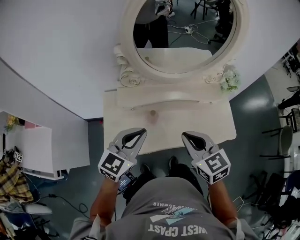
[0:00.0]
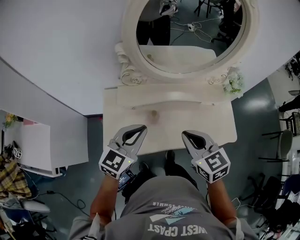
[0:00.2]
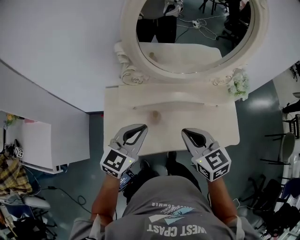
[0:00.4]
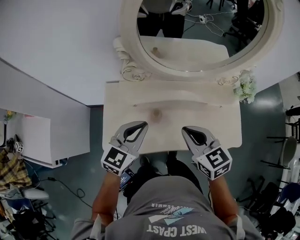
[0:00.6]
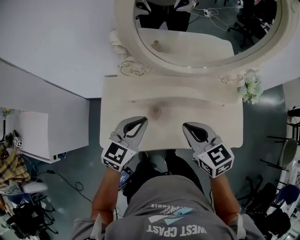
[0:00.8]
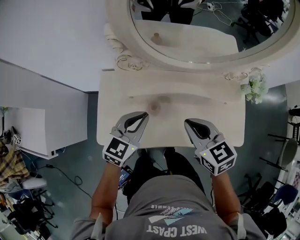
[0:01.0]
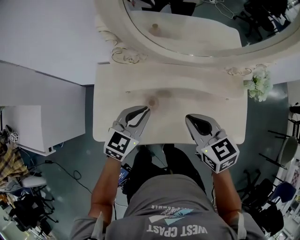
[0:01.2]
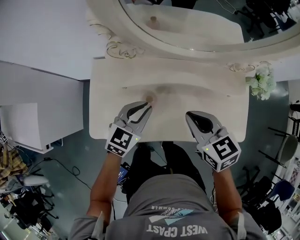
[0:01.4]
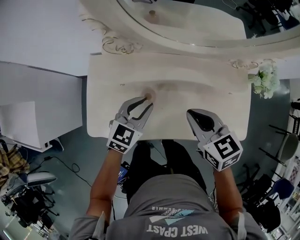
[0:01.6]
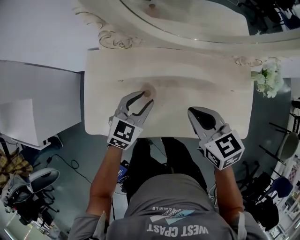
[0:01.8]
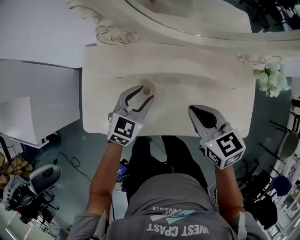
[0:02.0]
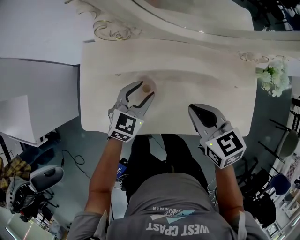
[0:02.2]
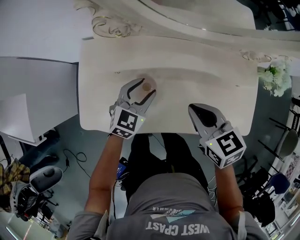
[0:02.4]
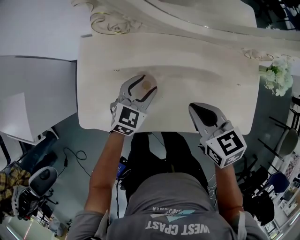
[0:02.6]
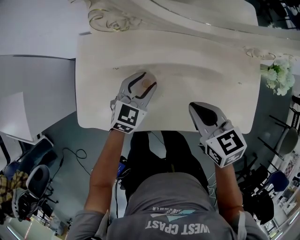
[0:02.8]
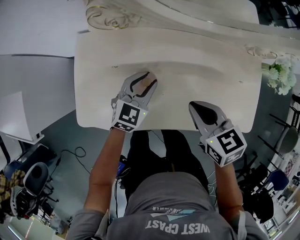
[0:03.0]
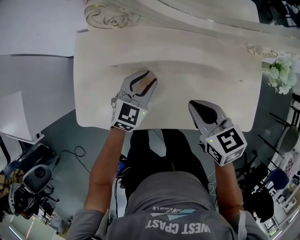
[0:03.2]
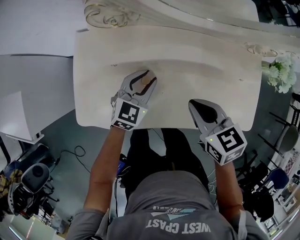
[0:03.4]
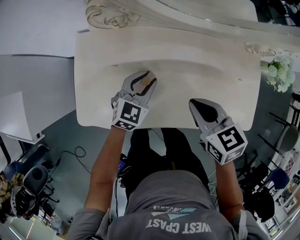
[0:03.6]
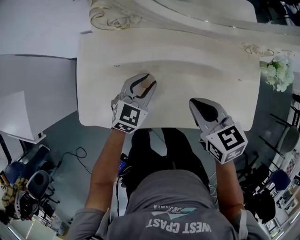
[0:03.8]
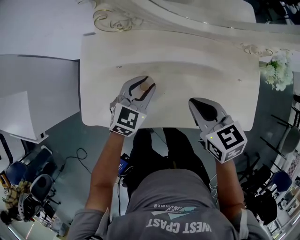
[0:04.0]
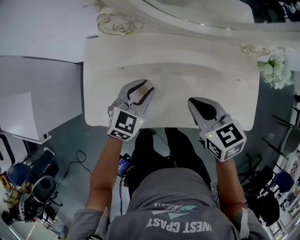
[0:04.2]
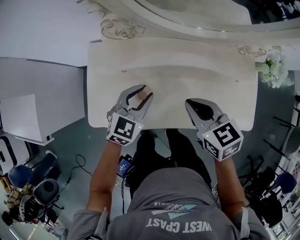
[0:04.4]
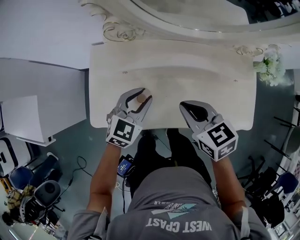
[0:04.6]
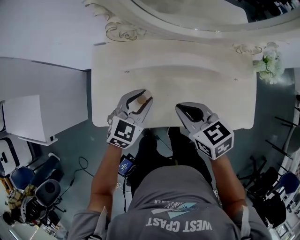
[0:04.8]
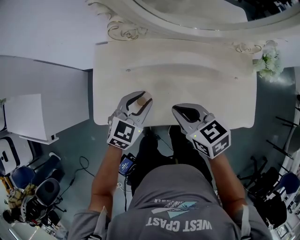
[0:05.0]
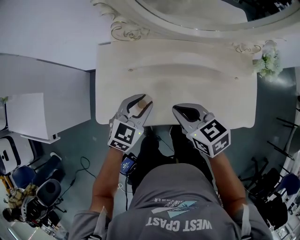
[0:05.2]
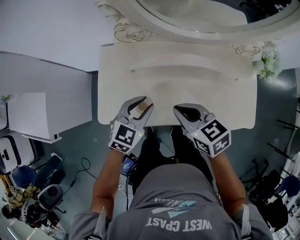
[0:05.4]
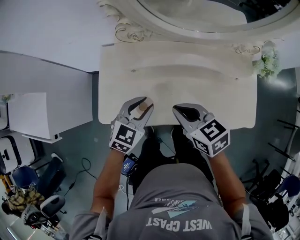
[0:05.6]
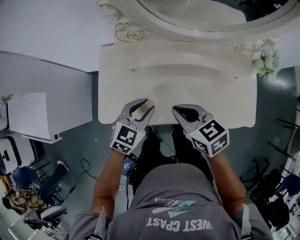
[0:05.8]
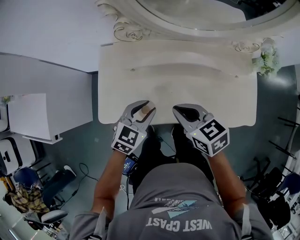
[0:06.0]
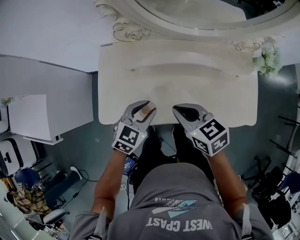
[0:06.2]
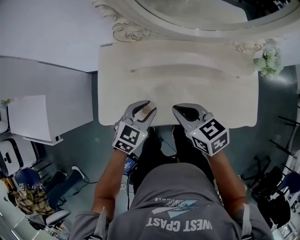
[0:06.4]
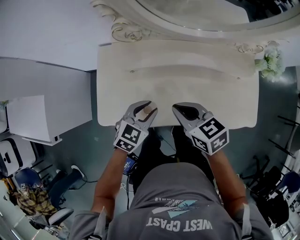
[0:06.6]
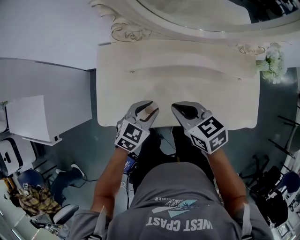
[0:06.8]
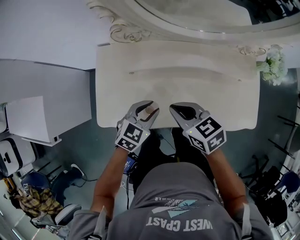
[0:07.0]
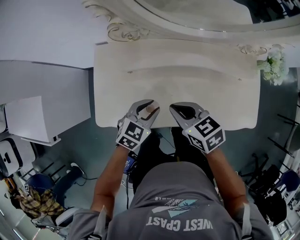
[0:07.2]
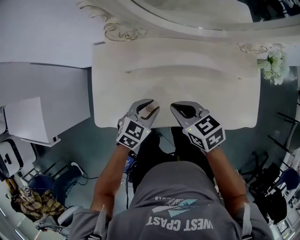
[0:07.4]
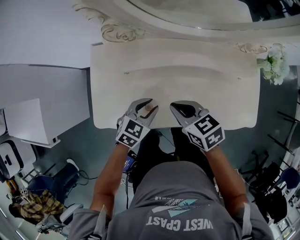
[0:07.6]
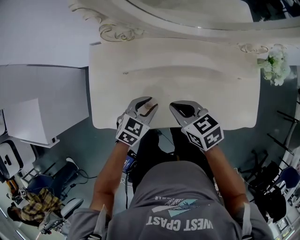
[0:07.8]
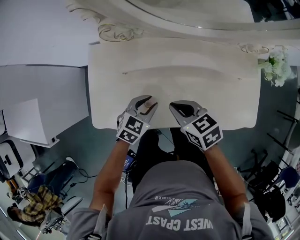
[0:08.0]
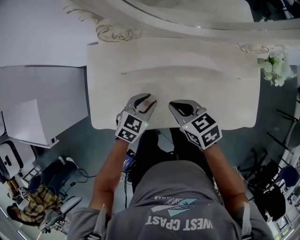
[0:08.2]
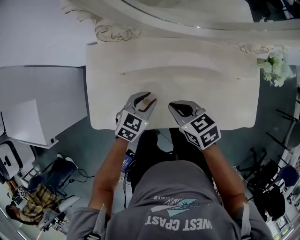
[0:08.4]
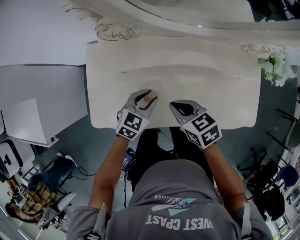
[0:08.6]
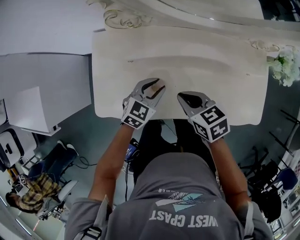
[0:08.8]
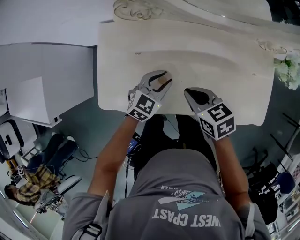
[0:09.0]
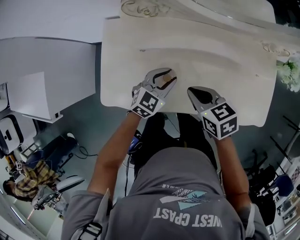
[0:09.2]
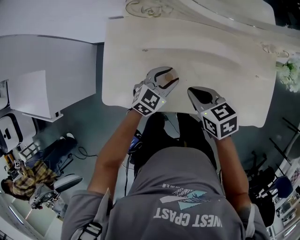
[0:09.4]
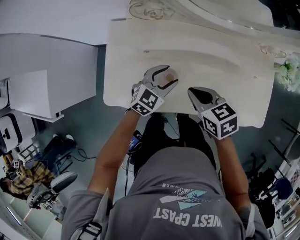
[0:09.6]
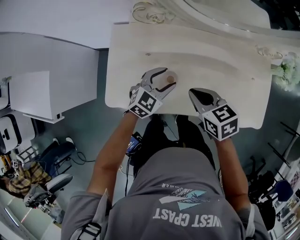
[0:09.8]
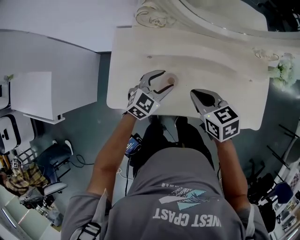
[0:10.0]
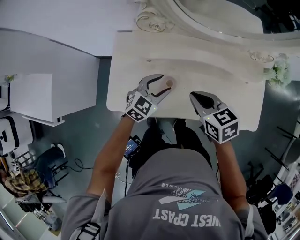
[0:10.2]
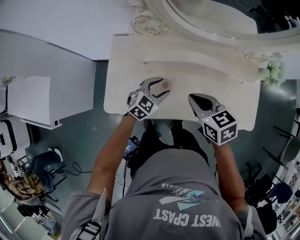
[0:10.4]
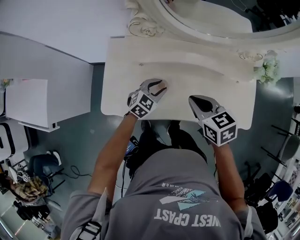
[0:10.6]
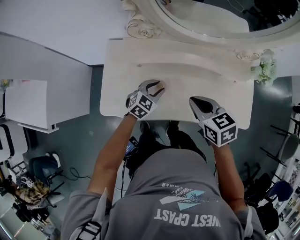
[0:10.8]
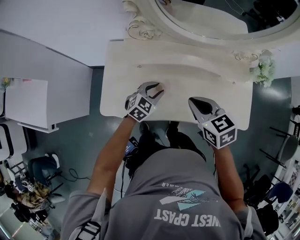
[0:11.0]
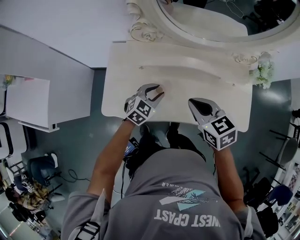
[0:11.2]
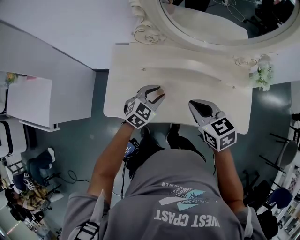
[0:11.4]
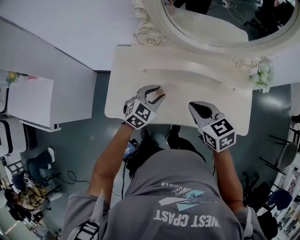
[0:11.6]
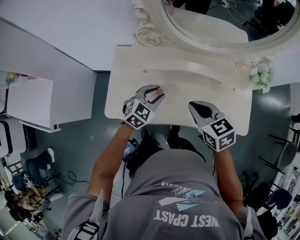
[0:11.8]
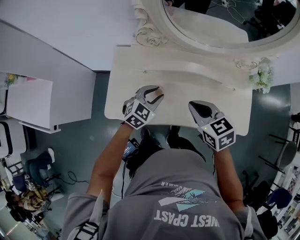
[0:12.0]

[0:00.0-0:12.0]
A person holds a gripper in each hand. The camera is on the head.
0:00.0 to 0:01.6: The left gripper shifts about 25 cm downward and forward, and opens. The right gripper is displaced forward and downward by approximately 20 cm.
0:01.6 to 0:03.0: Both grippers move downward, roughly 10 cm. The left gripper opens, then closes once more.
0:03.0 to 0:04.4: The left gripper goes about 10 cm upward. Meanwhile the right gripper ends up roughly 5 cm from where it was.
0:04.4 to 0:06.0: The left gripper goes some 10 cm backward; the right gripper shifts about 10 cm to the left and backward.
0:06.0 to 0:07.6: The two grippers go approximately 5 cm downward.
0:07.6 to 0:09.0: The grippers make only small movements.
0:09.0 to 0:10.4: The right gripper moves upward, approximately 10 cm, while the left gripper opens its fingers.
0:10.4 to 0:12.0: The left gripper heads upward, covering about 5 cm, and closes its fingers.

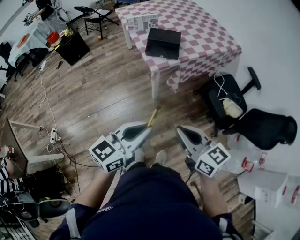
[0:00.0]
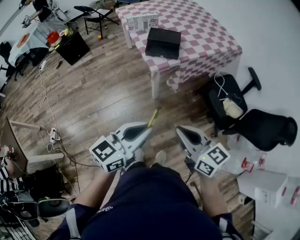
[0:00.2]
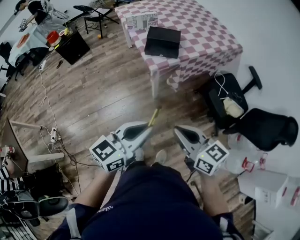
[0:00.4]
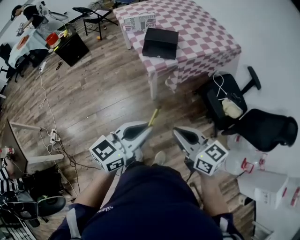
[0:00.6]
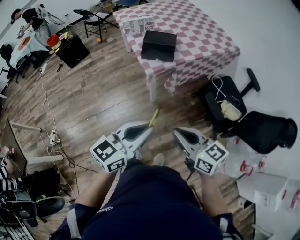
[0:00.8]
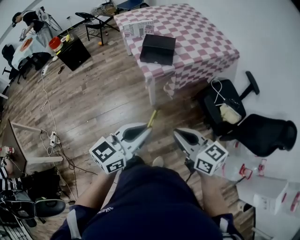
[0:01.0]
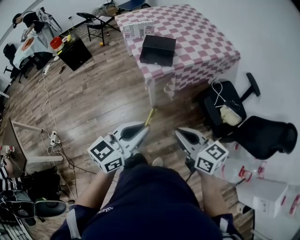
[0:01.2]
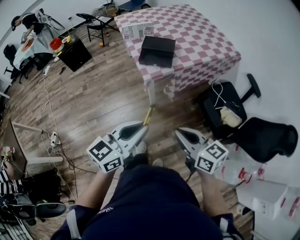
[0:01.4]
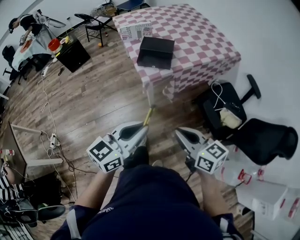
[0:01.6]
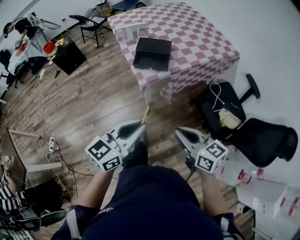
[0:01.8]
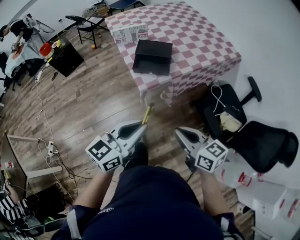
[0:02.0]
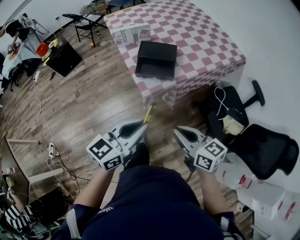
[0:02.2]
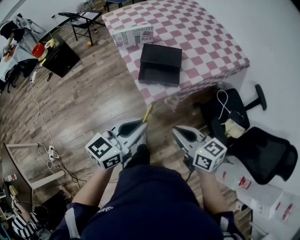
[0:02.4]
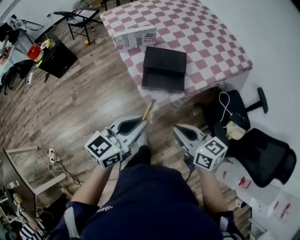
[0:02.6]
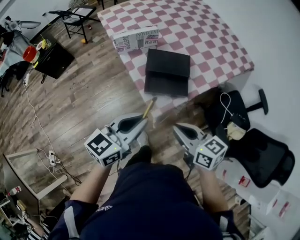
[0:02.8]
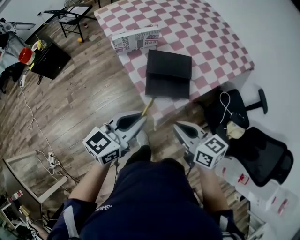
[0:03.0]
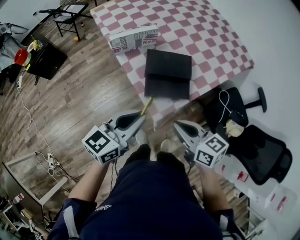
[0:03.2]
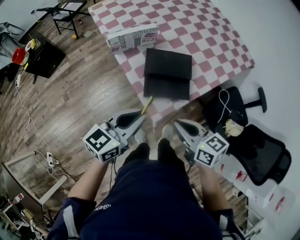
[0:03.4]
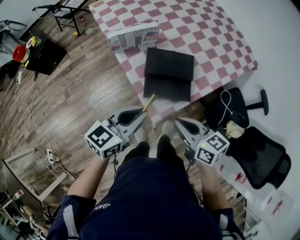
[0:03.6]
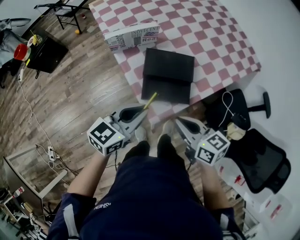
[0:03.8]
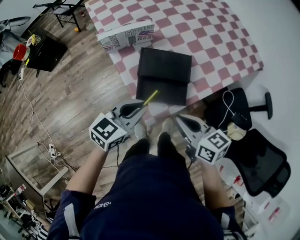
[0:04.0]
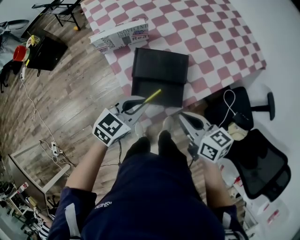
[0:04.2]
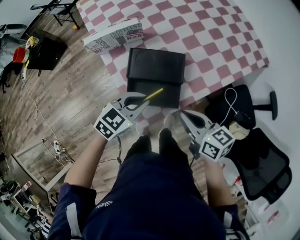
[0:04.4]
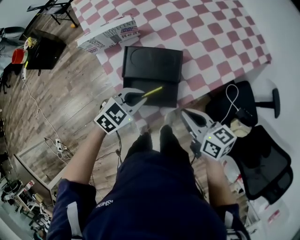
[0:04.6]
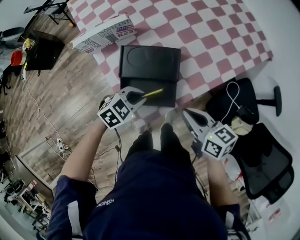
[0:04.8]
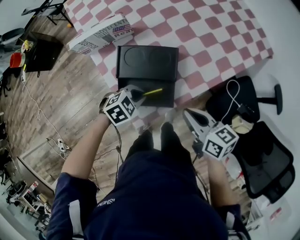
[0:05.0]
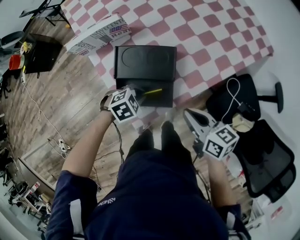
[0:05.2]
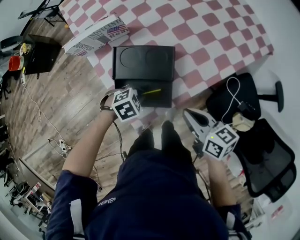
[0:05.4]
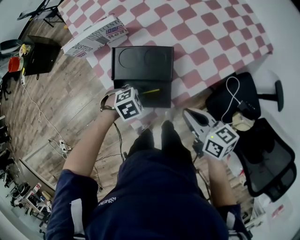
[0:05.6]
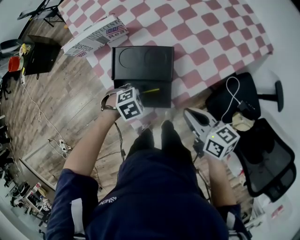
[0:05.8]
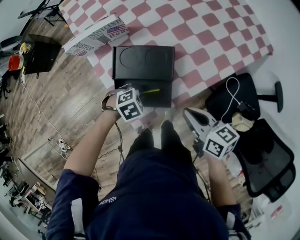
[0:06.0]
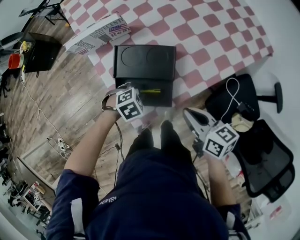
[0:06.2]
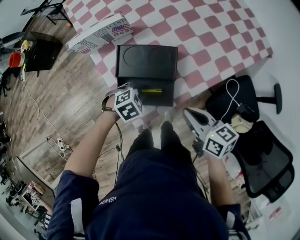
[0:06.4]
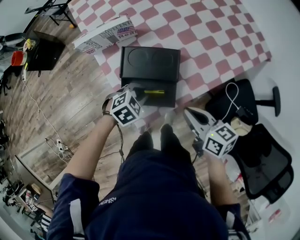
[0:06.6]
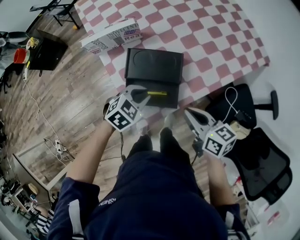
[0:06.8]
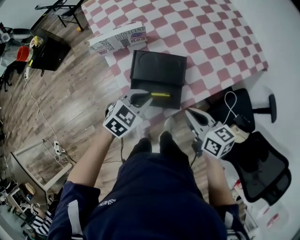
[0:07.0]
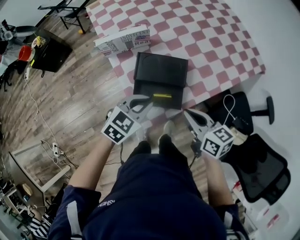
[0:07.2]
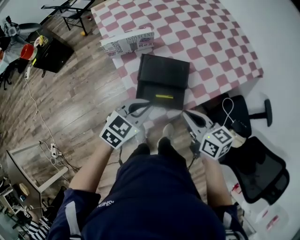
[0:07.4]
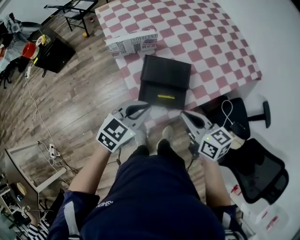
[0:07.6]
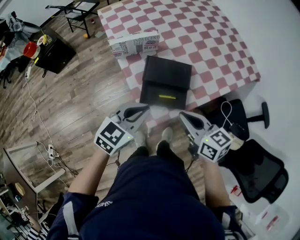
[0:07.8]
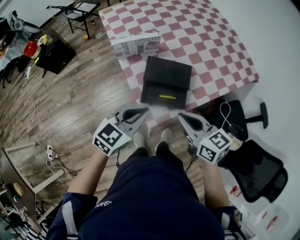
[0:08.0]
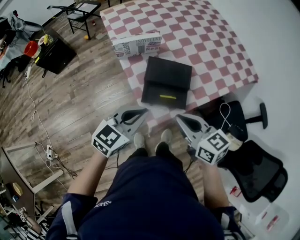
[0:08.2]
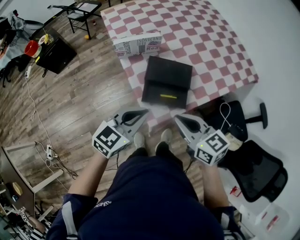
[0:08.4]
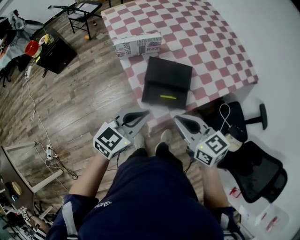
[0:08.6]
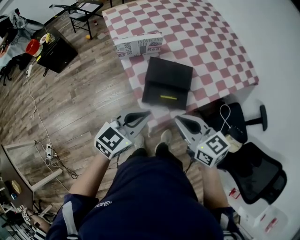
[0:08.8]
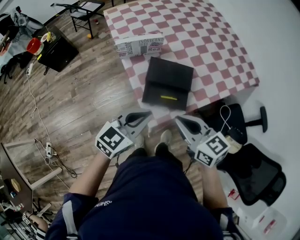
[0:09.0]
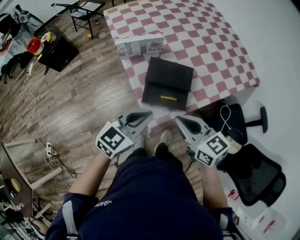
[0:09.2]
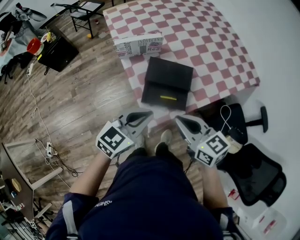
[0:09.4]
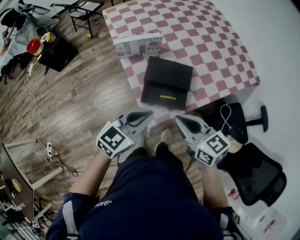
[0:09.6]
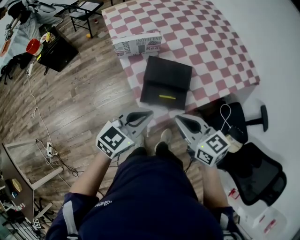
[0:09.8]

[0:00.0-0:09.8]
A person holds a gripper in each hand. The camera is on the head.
0:00.0 to 0:01.4: The two grippers go about 5 cm to the right.
0:01.4 to 0:02.8: The two grippers go some 35 cm forward.
0:02.8 to 0:04.2: The right gripper heads forward and to the right, covering roughly 15 cm; the left gripper is displaced forward, downward and to the right by about 20 cm, and swivels some 20 degrees.
0:04.2 to 0:05.6: The left gripper travels downward by roughly 20 cm, and angles its fingers downward, by approximately 40 degrees, while the right gripper moves some 10 cm.
0:05.6 to 0:07.0: The right gripper changes place by about 5 cm; the left gripper goes approximately 15 cm upward, and turns by about 40 degrees.
0:07.0 to 0:08.4: The left gripper shifts some 15 cm upward, backward and to the left, and turns by about 30 degrees, while the right gripper is displaced to the left, upward and backward by roughly 15 cm.
0:08.4 to 0:09.8: The grippers stay close to where they were, moving slightly.

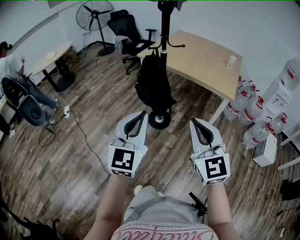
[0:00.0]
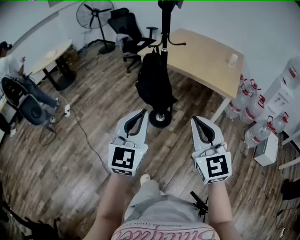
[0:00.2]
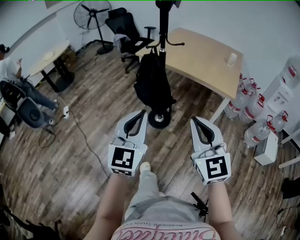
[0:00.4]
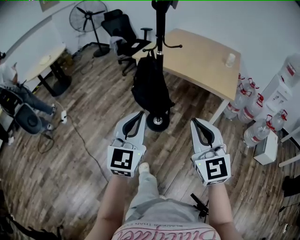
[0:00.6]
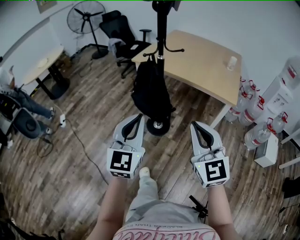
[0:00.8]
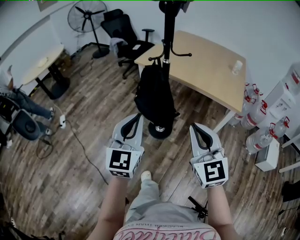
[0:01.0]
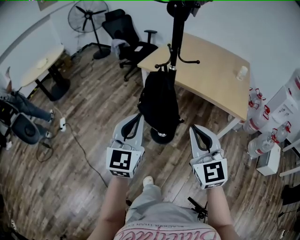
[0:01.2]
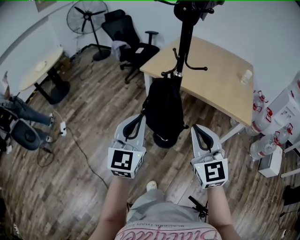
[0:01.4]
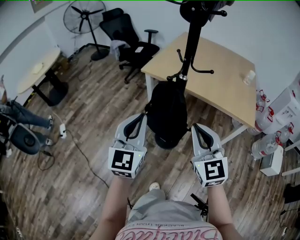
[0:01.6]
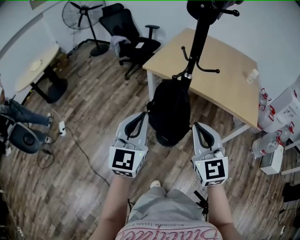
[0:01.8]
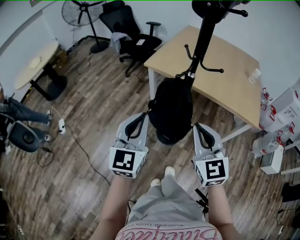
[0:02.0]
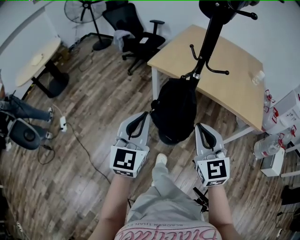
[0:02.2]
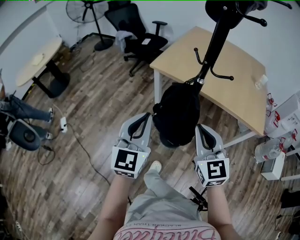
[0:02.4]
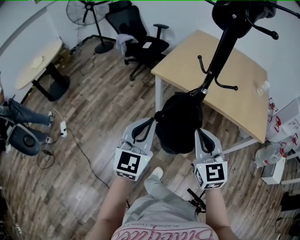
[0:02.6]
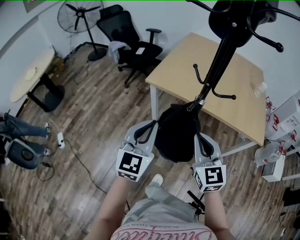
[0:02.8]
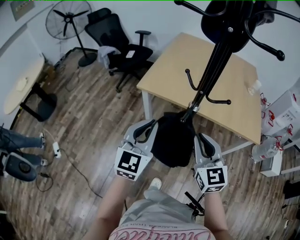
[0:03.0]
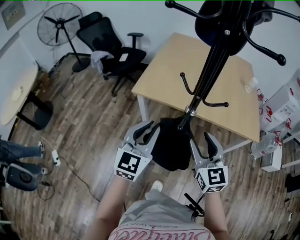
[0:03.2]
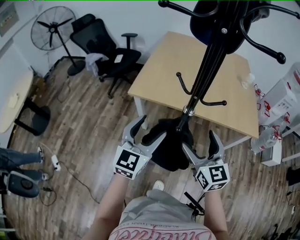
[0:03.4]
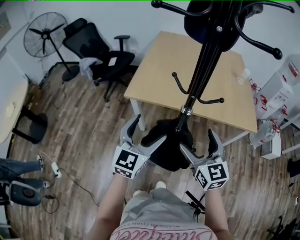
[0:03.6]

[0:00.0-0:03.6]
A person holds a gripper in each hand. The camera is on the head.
0:00.0 to 0:01.8: The grippers both shift forward by some 30 cm.
0:01.8 to 0:03.6: The two grippers go some 20 cm forward. The right gripper turns by about 20 degrees, and opens its fingers; the left gripper changes its angle by some 30 degrees, and opens its fingers.
